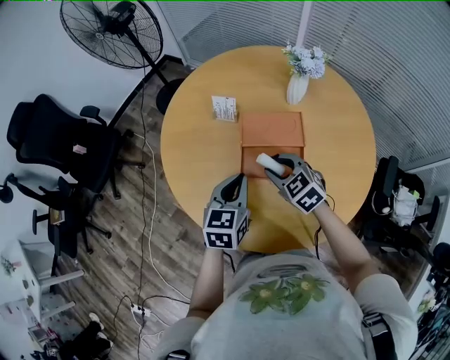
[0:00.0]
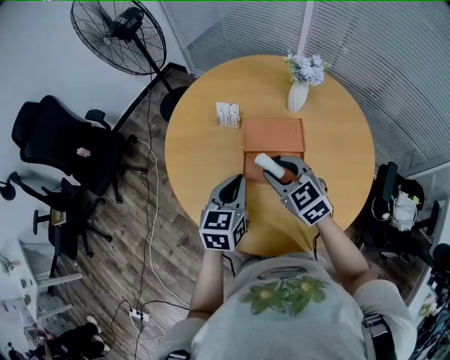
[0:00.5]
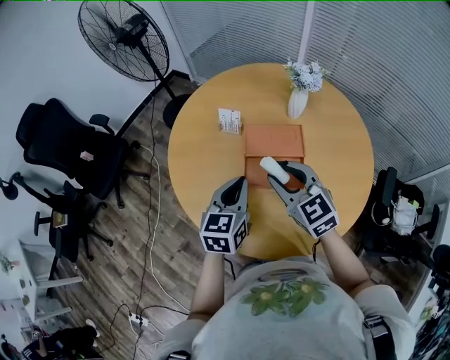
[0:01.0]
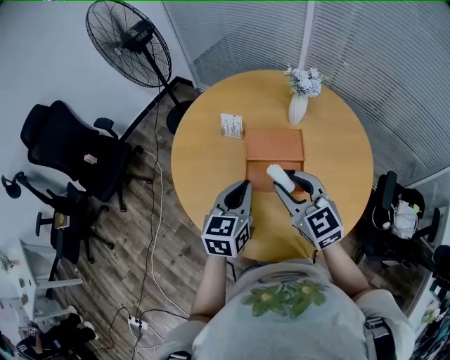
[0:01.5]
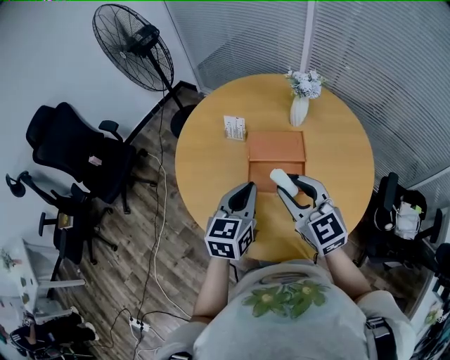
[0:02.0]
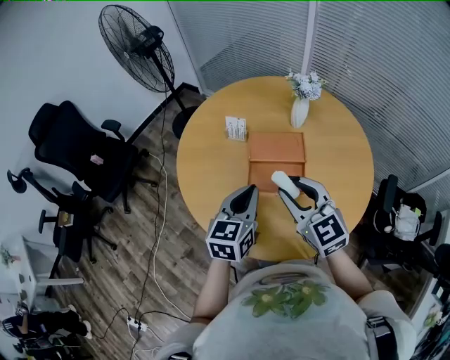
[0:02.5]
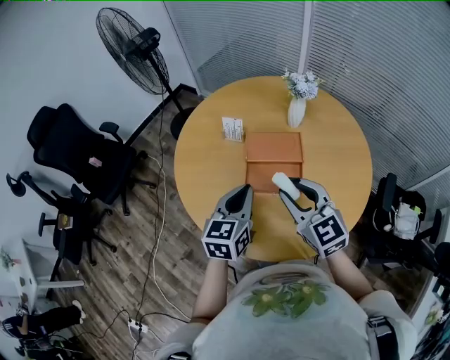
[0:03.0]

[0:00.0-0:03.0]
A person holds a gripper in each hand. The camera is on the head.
0:00.0 to 0:01.5: The left gripper moves upward, about 5 cm; the right gripper travels upward by roughly 15 cm, and turns by about 30 degrees.
0:01.5 to 0:03.0: There are only small adjustments of the grippers.

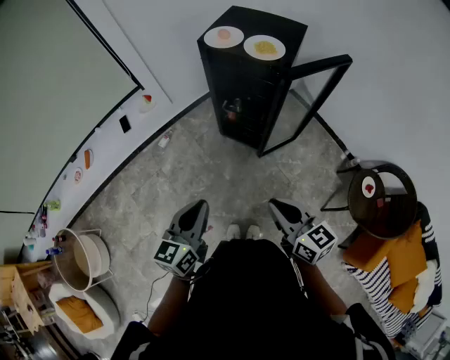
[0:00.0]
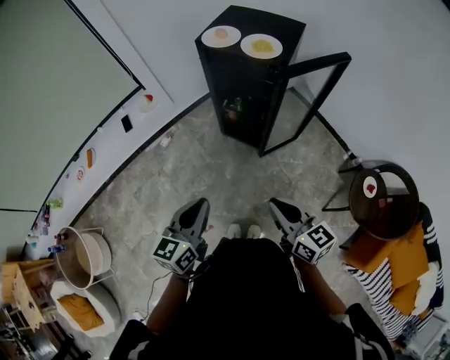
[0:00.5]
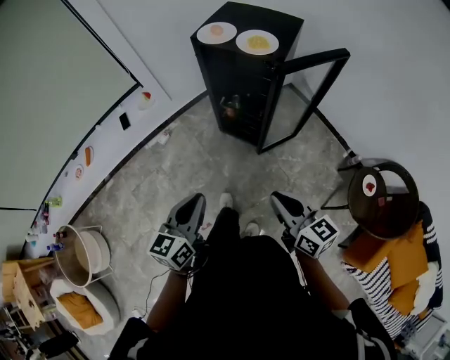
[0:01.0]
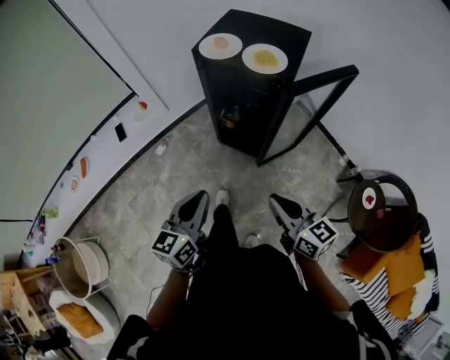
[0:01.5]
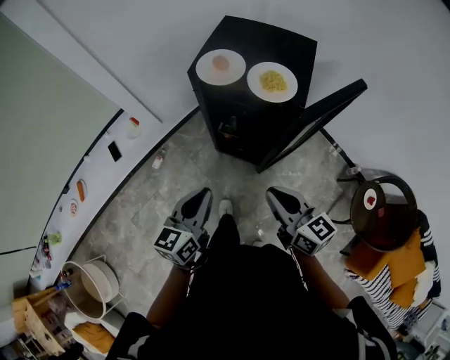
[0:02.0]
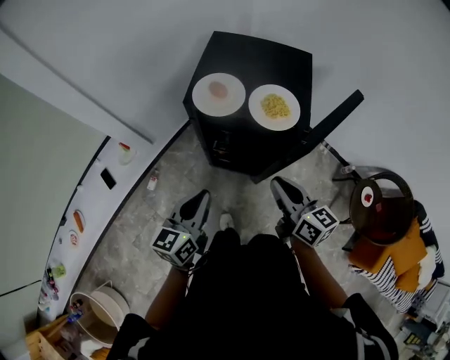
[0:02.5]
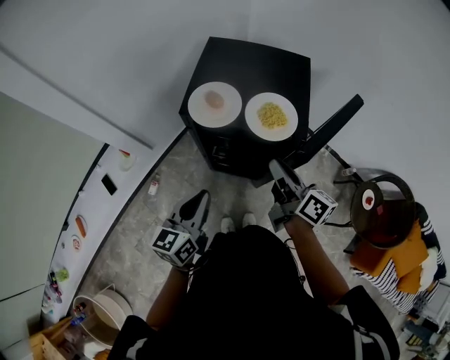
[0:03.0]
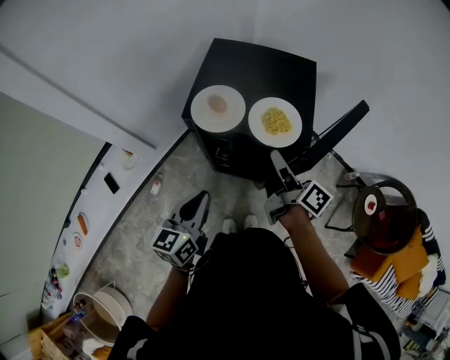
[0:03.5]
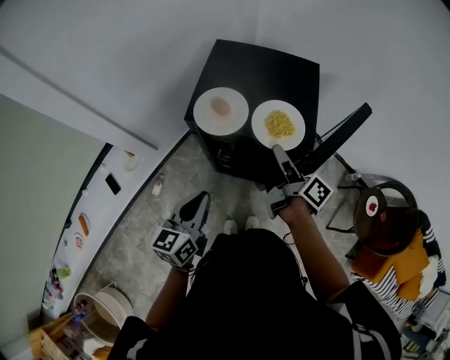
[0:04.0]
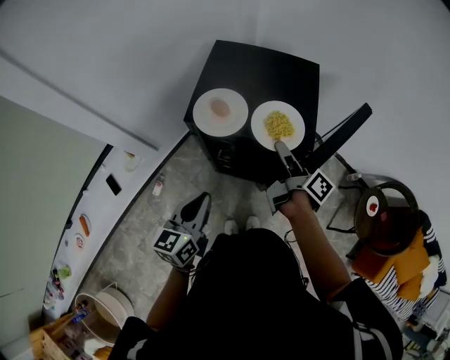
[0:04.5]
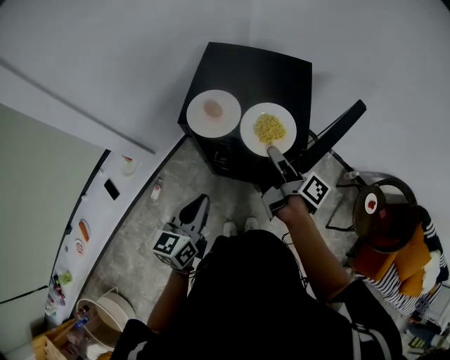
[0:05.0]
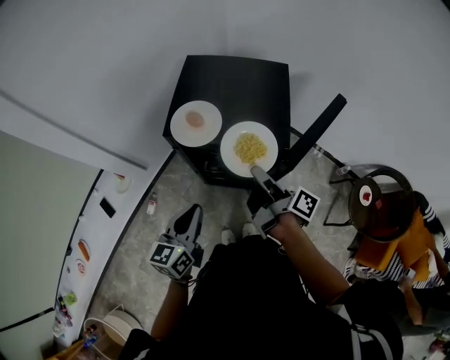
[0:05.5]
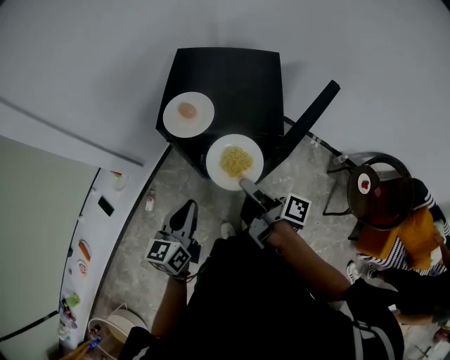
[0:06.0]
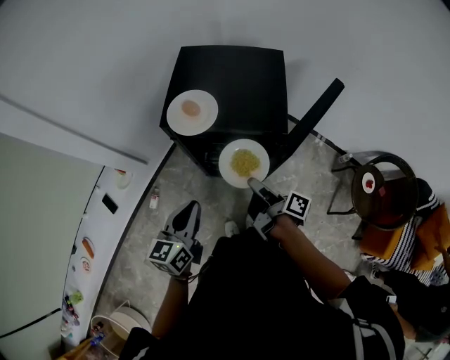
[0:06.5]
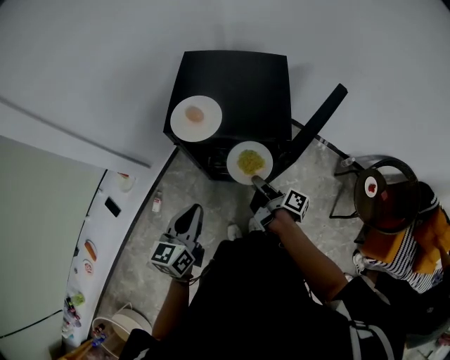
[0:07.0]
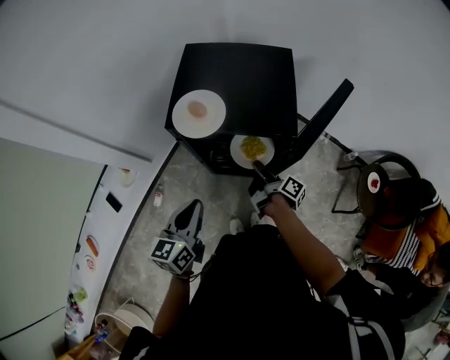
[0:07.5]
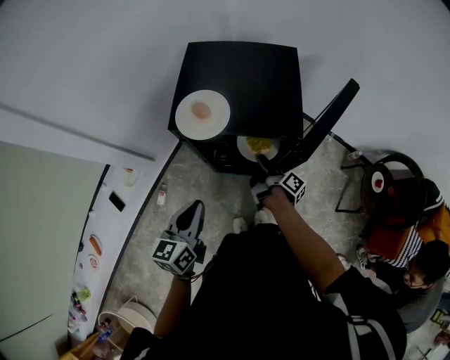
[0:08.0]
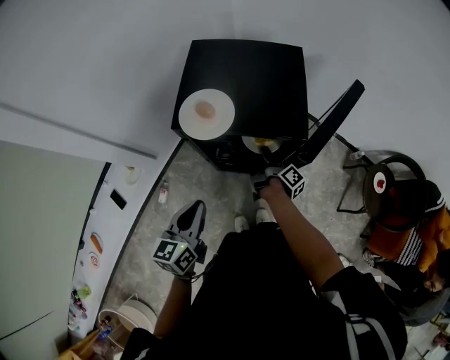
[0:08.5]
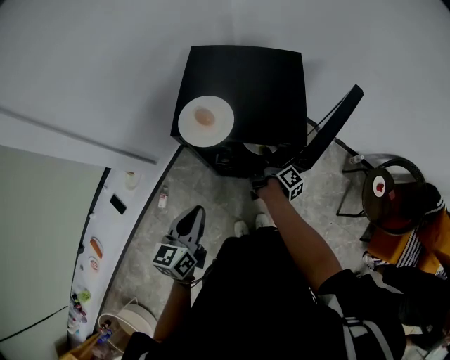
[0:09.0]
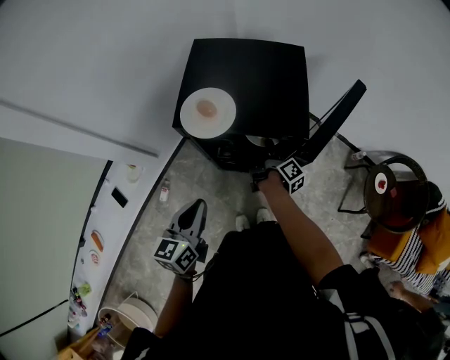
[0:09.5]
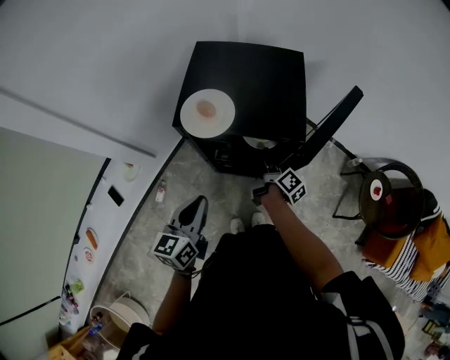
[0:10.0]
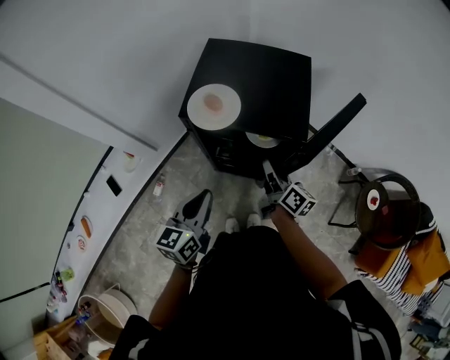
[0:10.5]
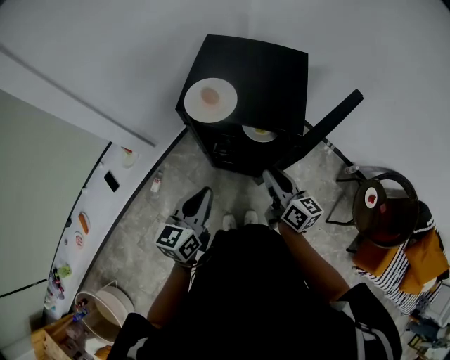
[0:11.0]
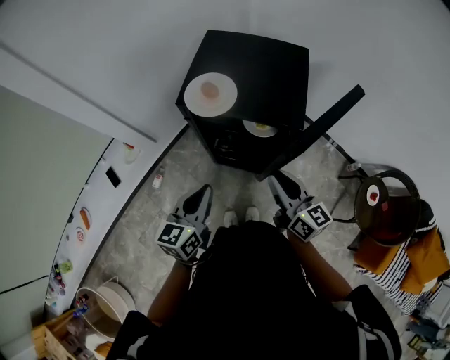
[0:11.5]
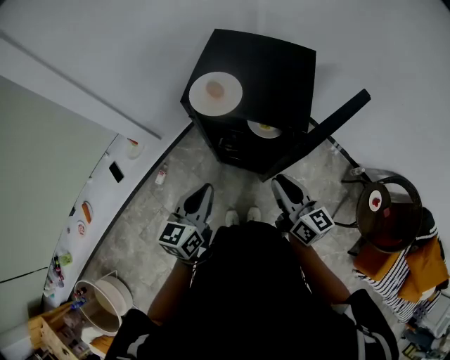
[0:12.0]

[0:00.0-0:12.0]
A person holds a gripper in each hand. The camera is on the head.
0:00.0 to 0:02.0: Both grippers travel together forward, some 25 cm.
0:02.0 to 0:04.0: The left gripper shifts approximately 15 cm forward; the right gripper goes roughly 25 cm forward, rotates around the line of its fingers by about 50 degrees, clockwise from behind, and opens up.
0:04.0 to 0:06.0: The right gripper moves backward, about 10 cm, and closes.
0:06.0 to 0:08.0: The right gripper is displaced downward and forward by about 20 cm, and changes its angle by some 20 degrees.
0:08.0 to 0:10.0: The right gripper opens up.
0:10.0 to 0:12.0: The right gripper shifts approximately 20 cm upward and backward, and rotates around the line of its fingers by about 50 degrees, counterclockwise from behind.

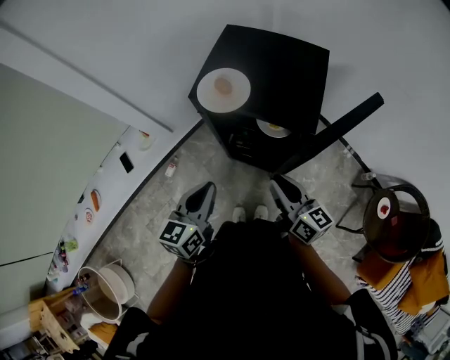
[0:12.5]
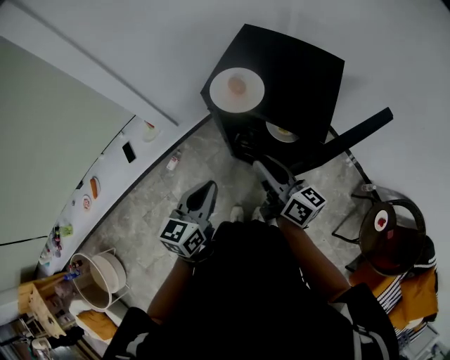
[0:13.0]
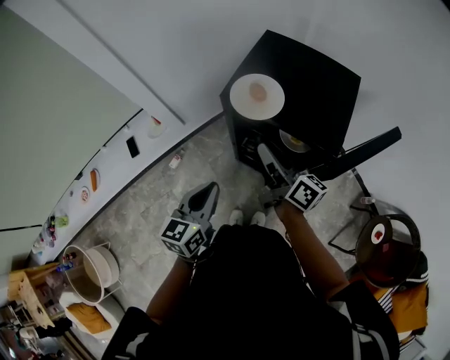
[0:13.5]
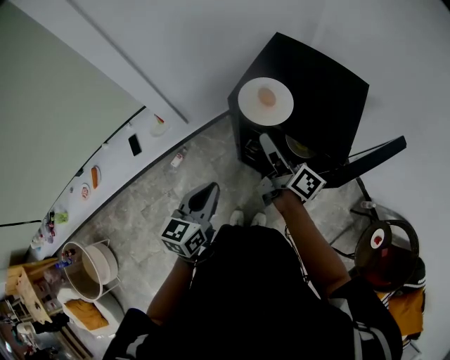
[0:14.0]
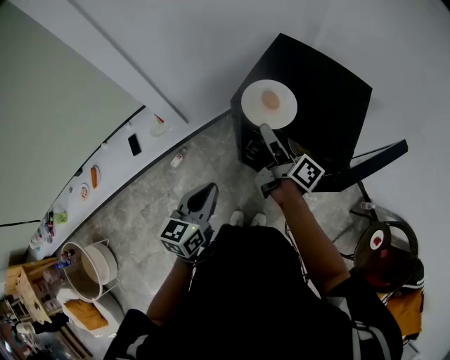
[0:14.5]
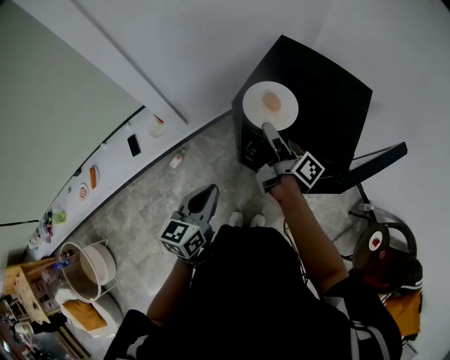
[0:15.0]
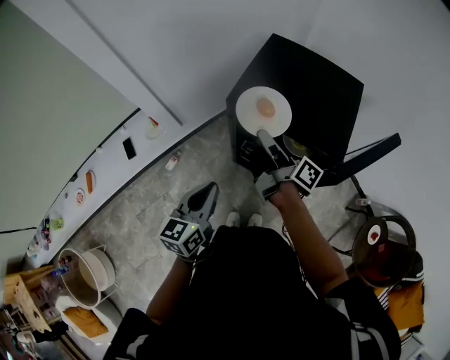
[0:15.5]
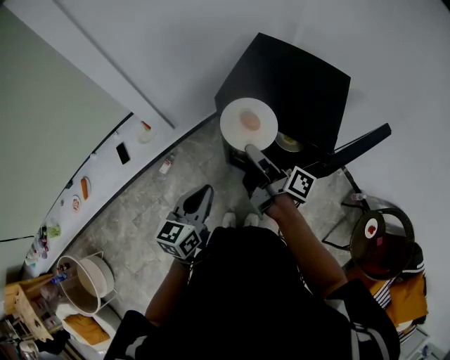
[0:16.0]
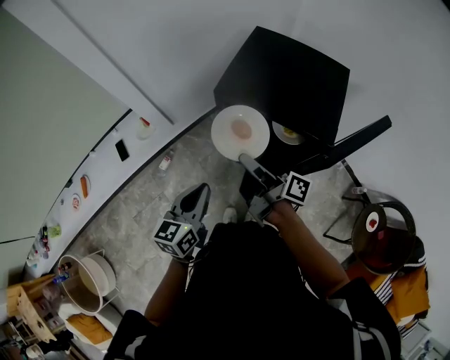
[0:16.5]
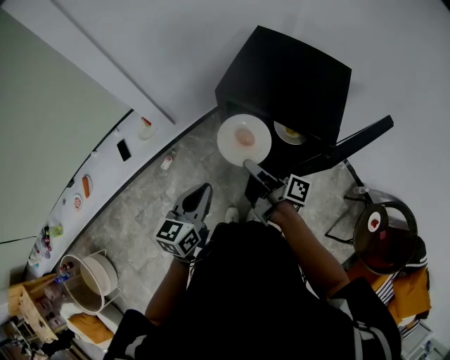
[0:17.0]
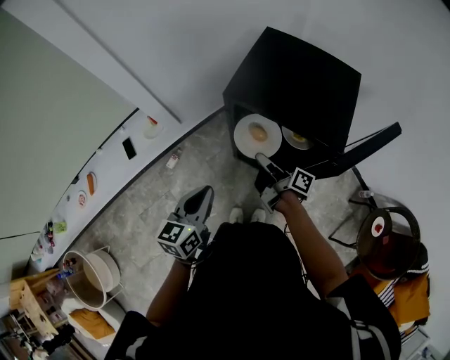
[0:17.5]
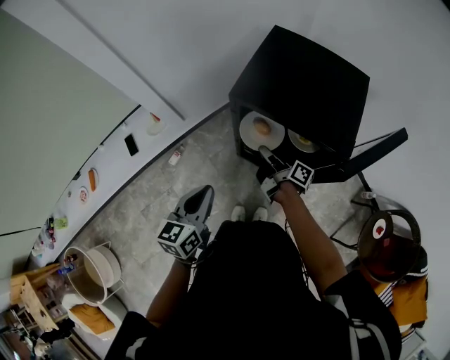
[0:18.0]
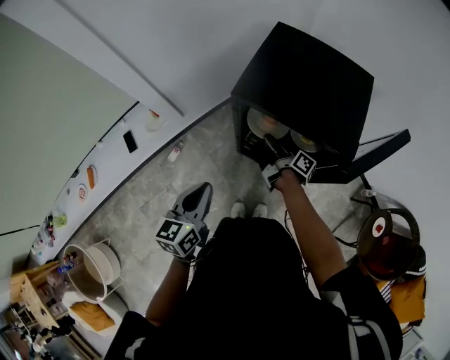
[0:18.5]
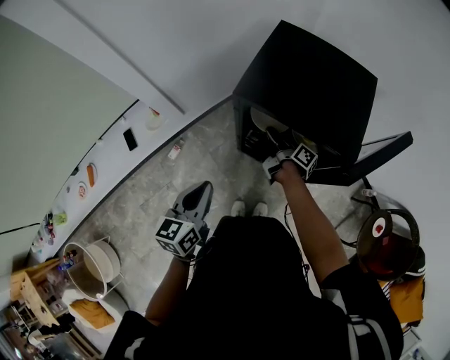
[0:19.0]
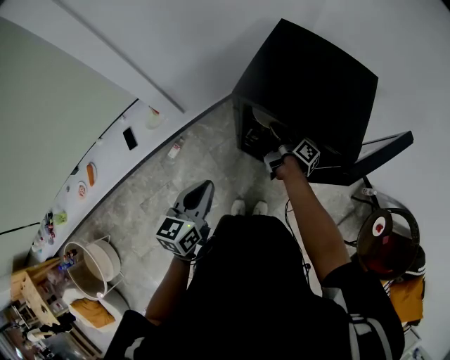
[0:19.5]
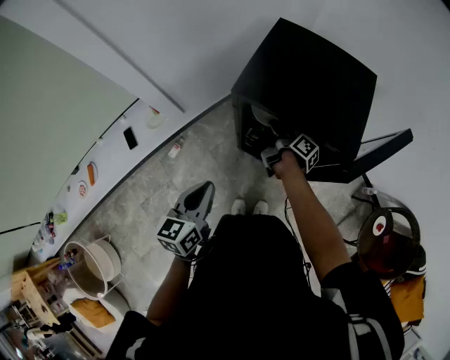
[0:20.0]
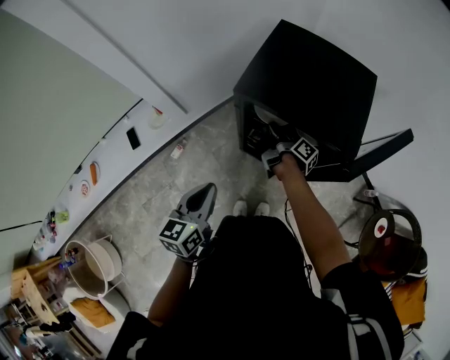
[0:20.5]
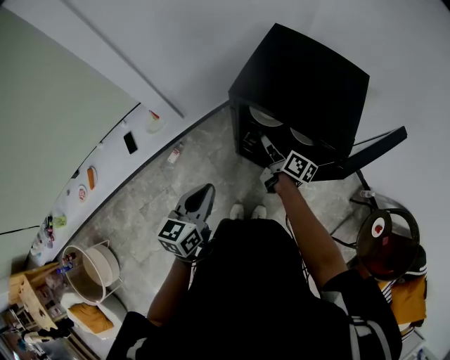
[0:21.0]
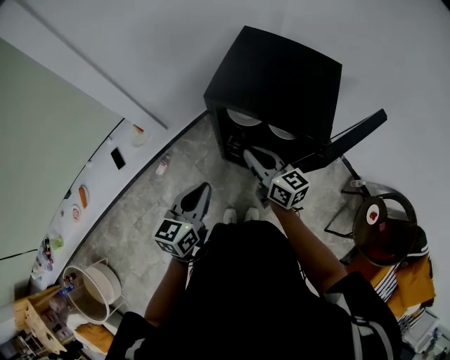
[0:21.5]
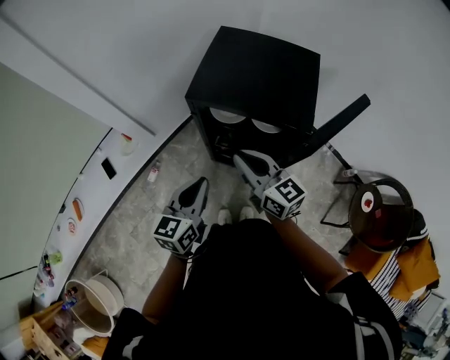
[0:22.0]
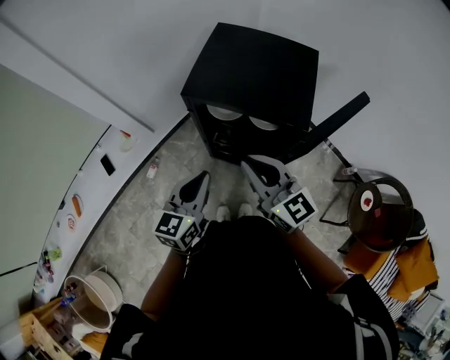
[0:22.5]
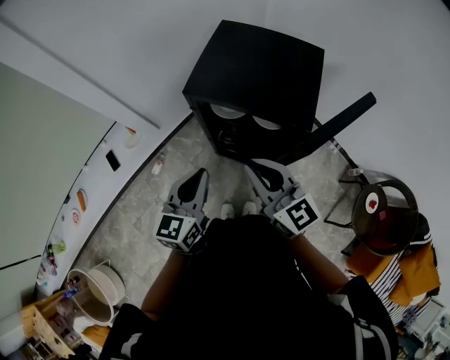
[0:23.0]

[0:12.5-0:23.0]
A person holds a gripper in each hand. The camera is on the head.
0:12.5 to 0:14.5: The left gripper heads to the left, covering some 5 cm, while the right gripper moves forward and to the left, roughly 25 cm, and swivels roughly 40 degrees.
0:14.5 to 0:16.5: The right gripper is displaced backward by approximately 10 cm, and closes up.
0:16.5 to 0:19.0: The right gripper is displaced downward and forward by roughly 25 cm, and rotates about 20 degrees. The left gripper moves about 5 cm.
0:19.0 to 0:21.0: The right gripper ends up approximately 5 cm from where it was, and rotates approximately 30 degrees.
0:21.0 to 0:23.0: The right gripper shifts some 25 cm upward and backward, and rolls counterclockwise, seen from behind, by approximately 60 degrees. The left gripper travels to the right and upward by approximately 10 cm.

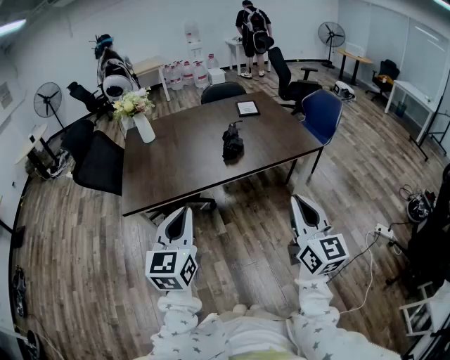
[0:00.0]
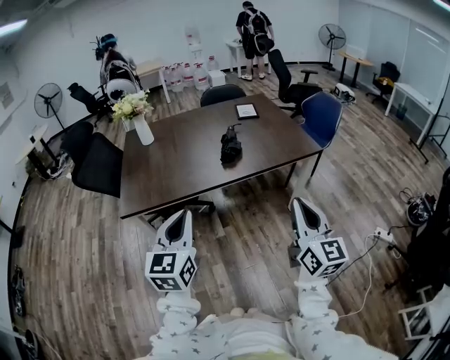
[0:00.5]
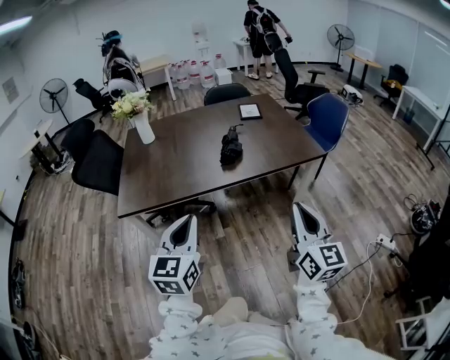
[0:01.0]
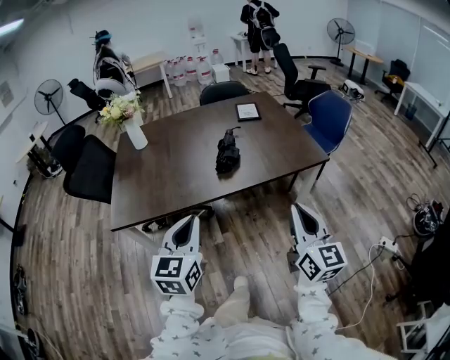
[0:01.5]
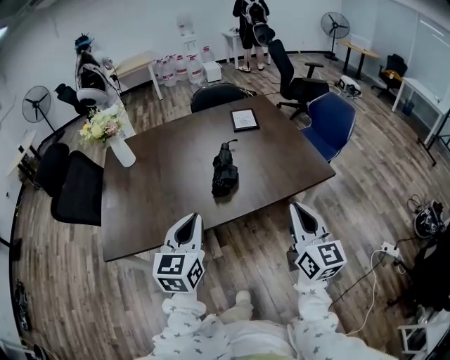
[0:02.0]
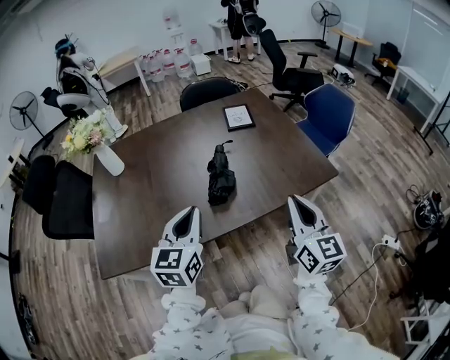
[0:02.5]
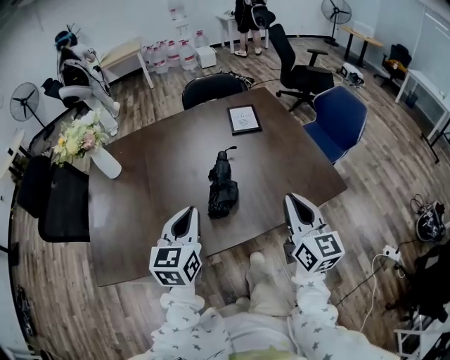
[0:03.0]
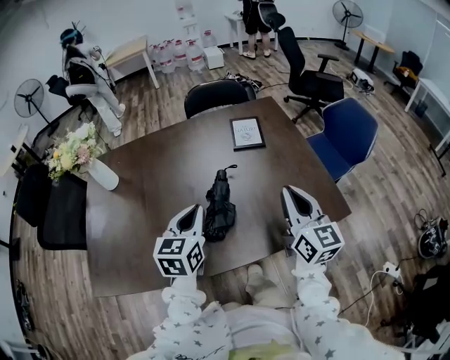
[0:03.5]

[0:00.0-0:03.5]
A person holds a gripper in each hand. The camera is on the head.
0:00.0 to 0:02.0: Both grippers move forward, roughly 25 cm.
0:02.0 to 0:03.5: The grippers both shift forward by about 25 cm.
